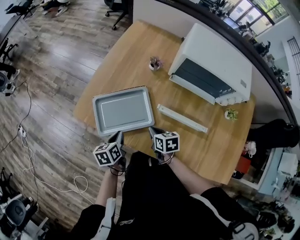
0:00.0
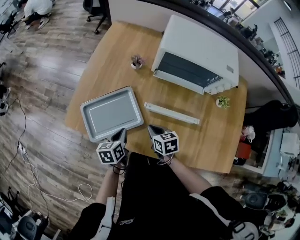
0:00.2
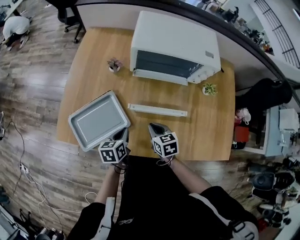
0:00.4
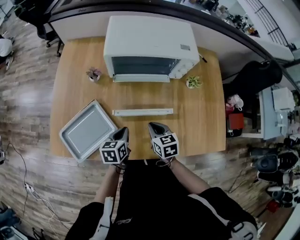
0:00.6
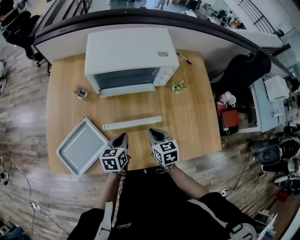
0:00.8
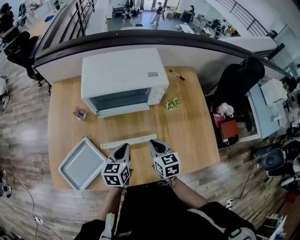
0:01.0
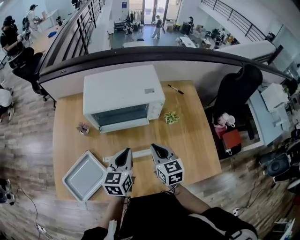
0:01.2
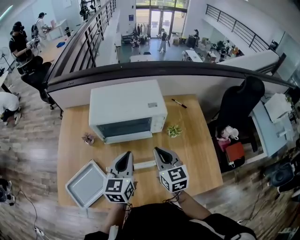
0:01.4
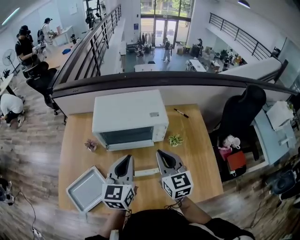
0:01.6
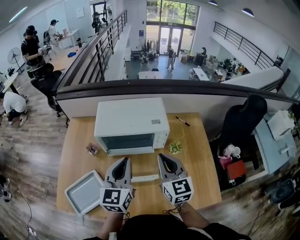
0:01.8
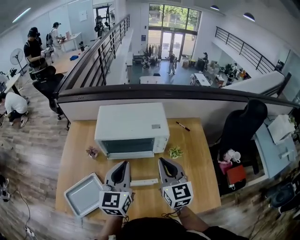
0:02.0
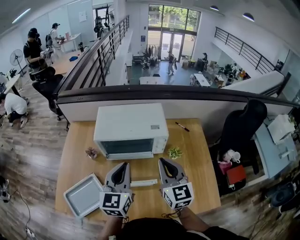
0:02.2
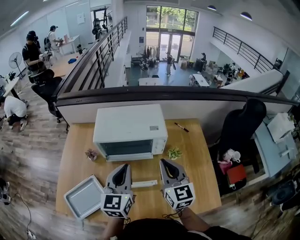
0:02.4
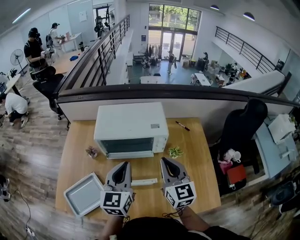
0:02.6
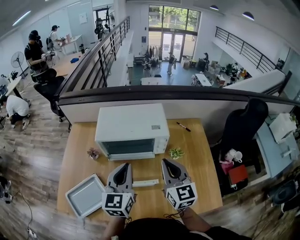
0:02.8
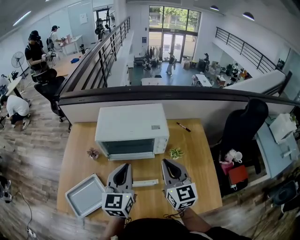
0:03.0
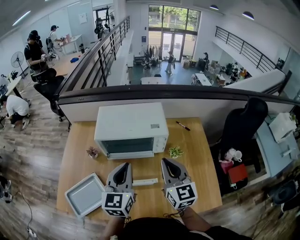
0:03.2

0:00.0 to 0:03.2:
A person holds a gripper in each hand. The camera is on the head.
0:00.0 to 0:01.6: The right gripper ends up approximately 50 cm from where it was, and tips its fingers upward by roughly 40 degrees. Meanwhile the left gripper changes place by some 50 cm, and angles its fingers upward, by about 40 degrees.
0:01.6 to 0:03.2: The grippers stay close to where they were, moving slightly.

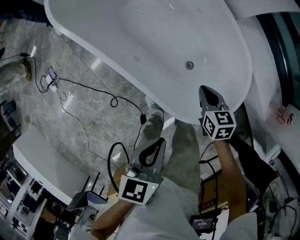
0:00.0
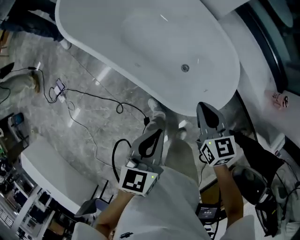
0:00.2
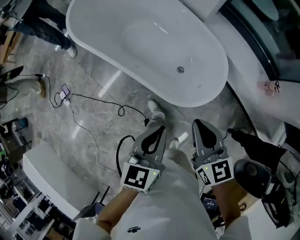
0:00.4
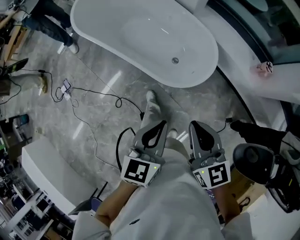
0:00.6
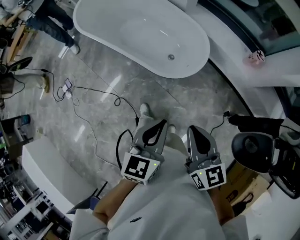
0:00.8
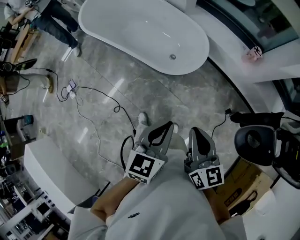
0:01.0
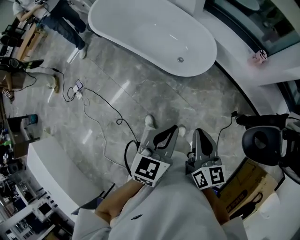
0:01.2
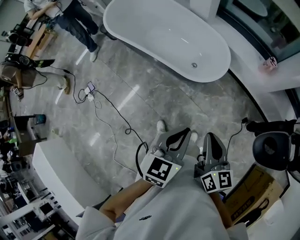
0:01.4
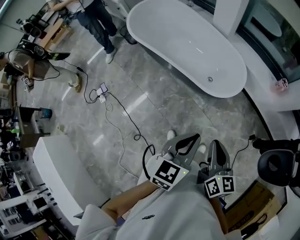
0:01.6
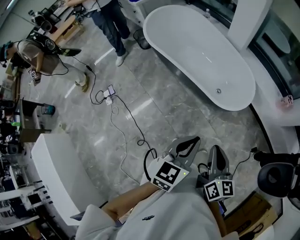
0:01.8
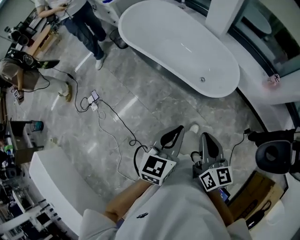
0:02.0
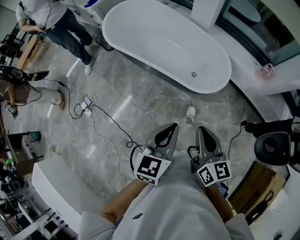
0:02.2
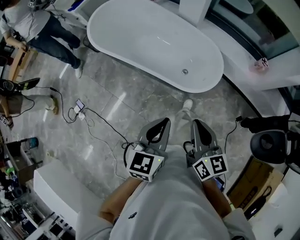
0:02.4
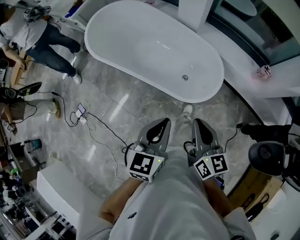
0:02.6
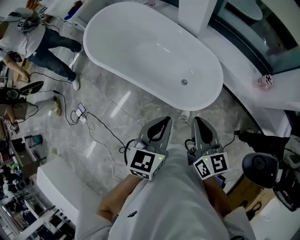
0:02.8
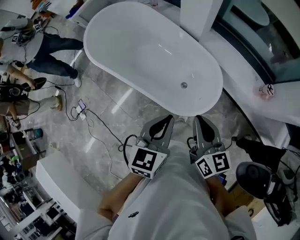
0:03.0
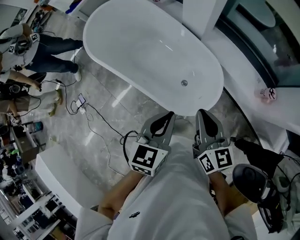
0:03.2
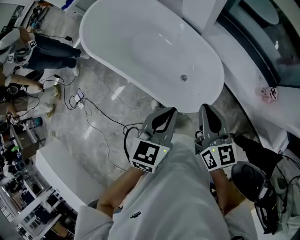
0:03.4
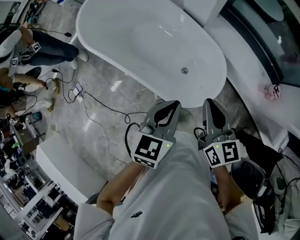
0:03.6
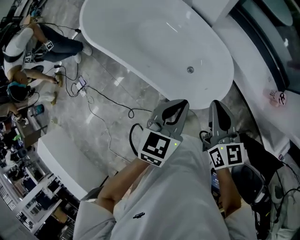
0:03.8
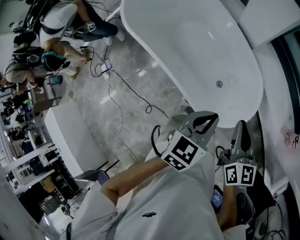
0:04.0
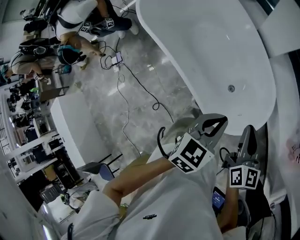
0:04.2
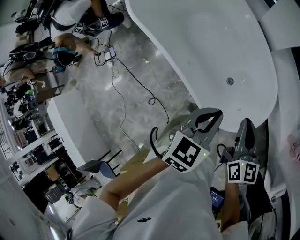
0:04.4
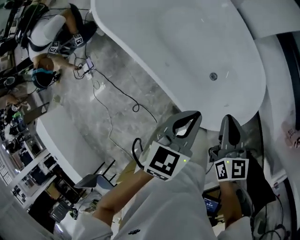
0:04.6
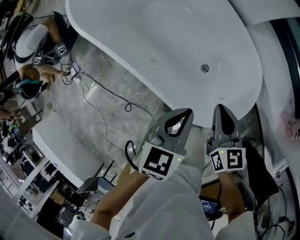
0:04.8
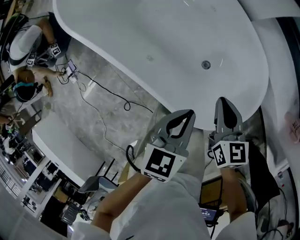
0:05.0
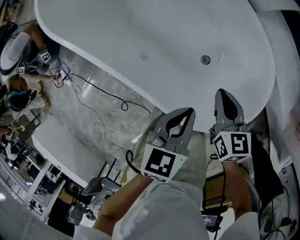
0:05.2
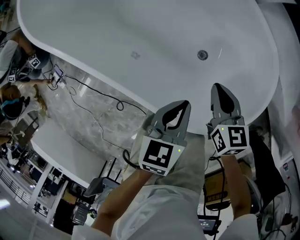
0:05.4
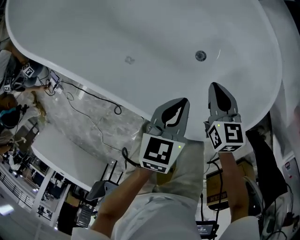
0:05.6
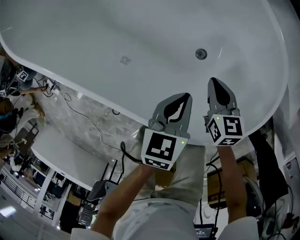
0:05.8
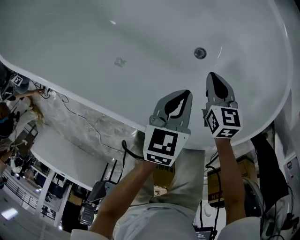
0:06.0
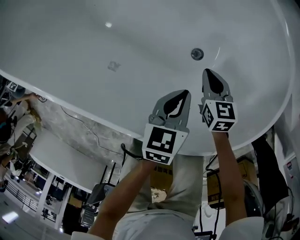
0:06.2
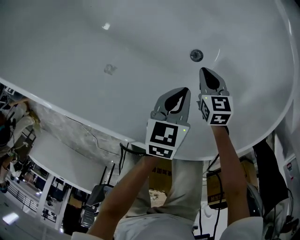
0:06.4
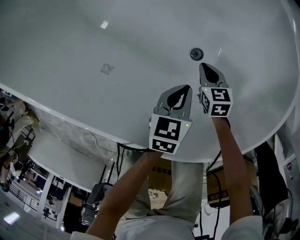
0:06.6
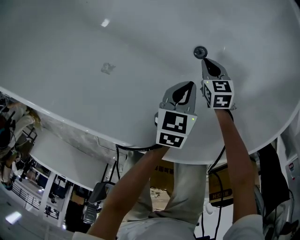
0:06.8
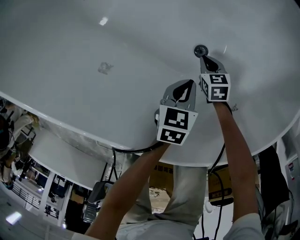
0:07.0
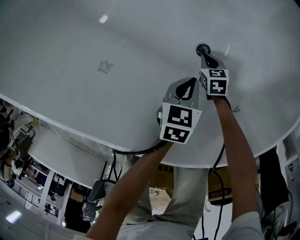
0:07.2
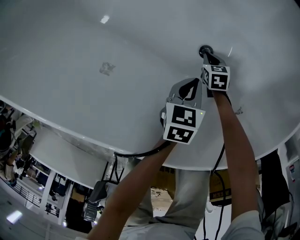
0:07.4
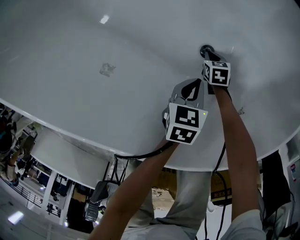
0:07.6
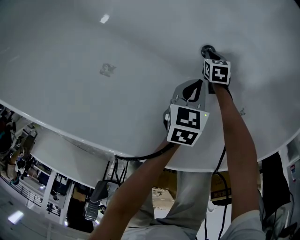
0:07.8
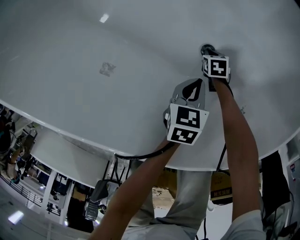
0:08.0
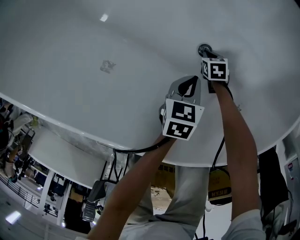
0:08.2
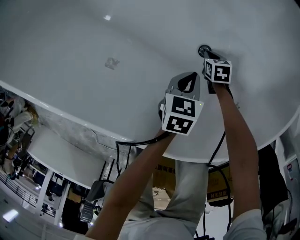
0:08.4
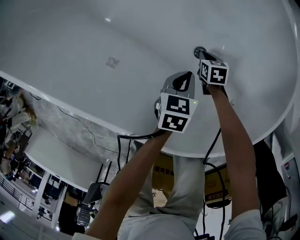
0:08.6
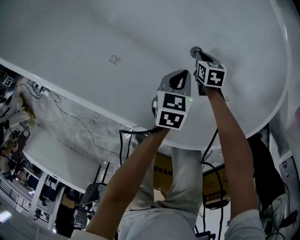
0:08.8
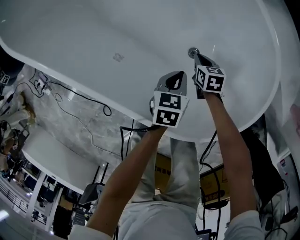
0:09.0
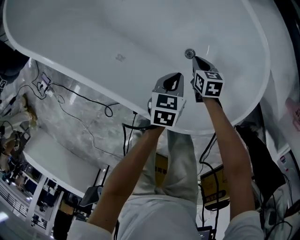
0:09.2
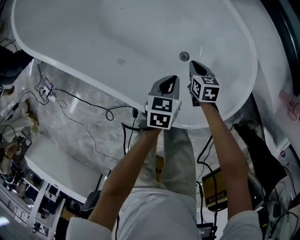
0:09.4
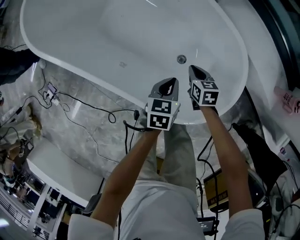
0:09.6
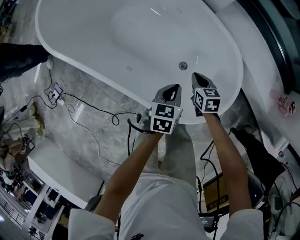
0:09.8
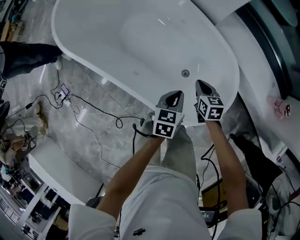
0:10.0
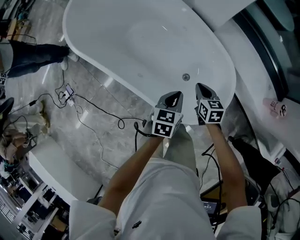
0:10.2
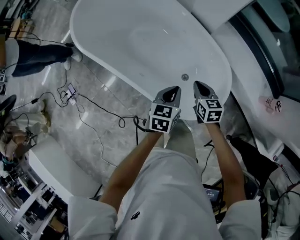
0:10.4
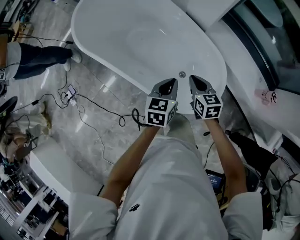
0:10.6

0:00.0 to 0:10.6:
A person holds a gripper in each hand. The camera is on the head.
0:00.0 to 0:01.6: The two grippers travel together, backward, some 50 cm. The grippers both shift upward by roughly 35 cm. The left gripper swivels about 30 degrees; the right gripper points its fingers roughly 30 degrees further upward.
0:01.6 to 0:03.0: Both grippers travel together forward, roughly 35 cm.
0:03.0 to 0:04.6: The two grippers go approximately 25 cm downward and forward.
0:04.6 to 0:06.0: The grippers both shift downward by approximately 40 cm. The right gripper changes its angle by approximately 20 degrees.
0:06.0 to 0:07.6: The right gripper moves downward, roughly 30 cm, and changes its angle by some 30 degrees, while the left gripper moves downward, about 20 cm.
0:07.6 to 0:09.0: The right gripper travels upward by about 20 cm; the left gripper moves upward, some 15 cm.
0:09.0 to 0:10.6: Both grippers travel together upward, approximately 50 cm. The left gripper turns by some 20 degrees, while the right gripper swivels about 30 degrees.

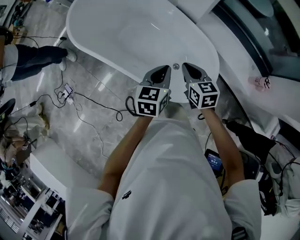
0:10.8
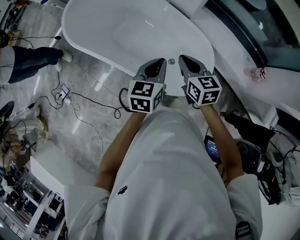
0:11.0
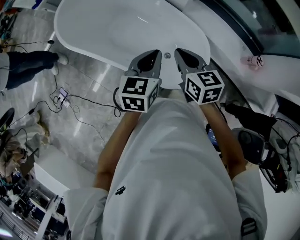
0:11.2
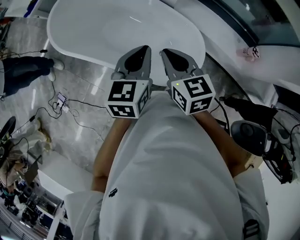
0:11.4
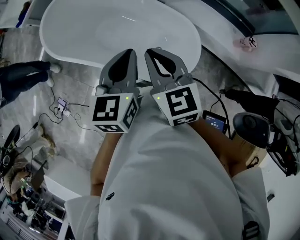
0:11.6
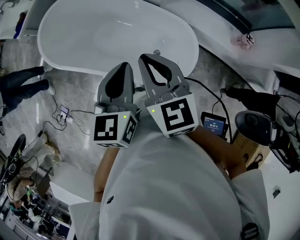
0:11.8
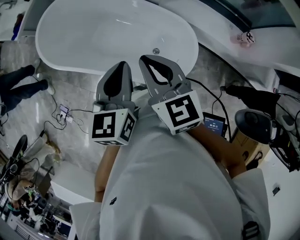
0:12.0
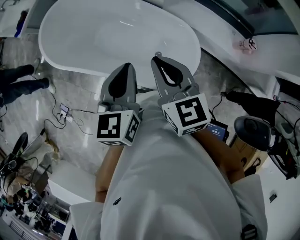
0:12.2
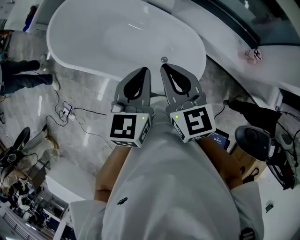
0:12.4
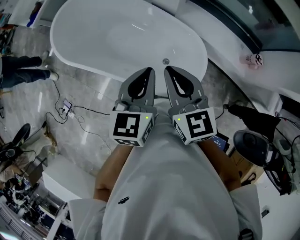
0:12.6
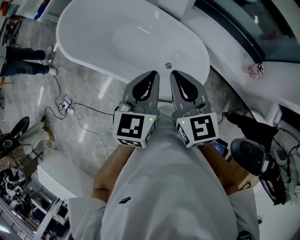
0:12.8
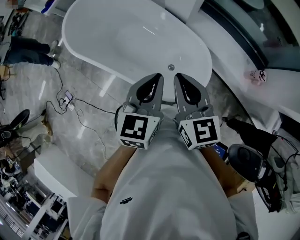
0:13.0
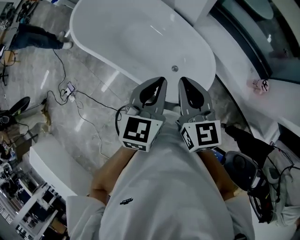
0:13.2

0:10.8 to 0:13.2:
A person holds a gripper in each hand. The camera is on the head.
0:10.8 to 0:12.0: The grippers both shift upward by roughly 15 cm.
0:12.0 to 0:13.2: Both grippers move to the right, roughly 10 cm.

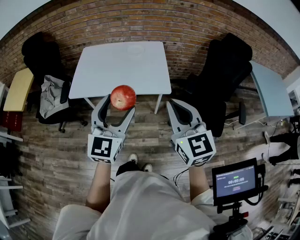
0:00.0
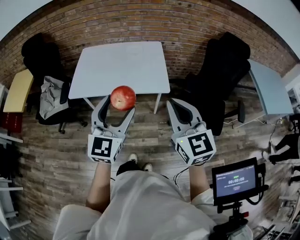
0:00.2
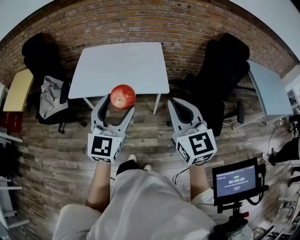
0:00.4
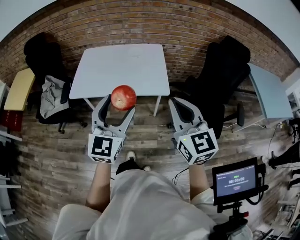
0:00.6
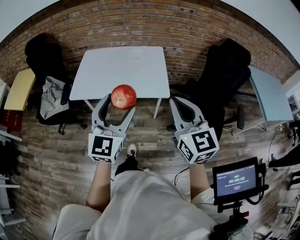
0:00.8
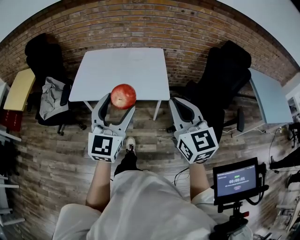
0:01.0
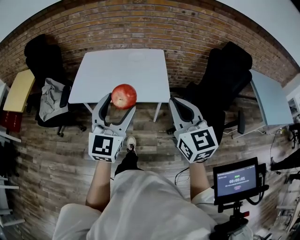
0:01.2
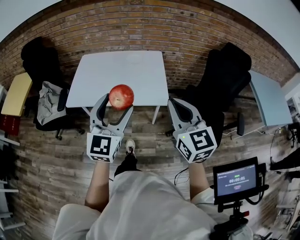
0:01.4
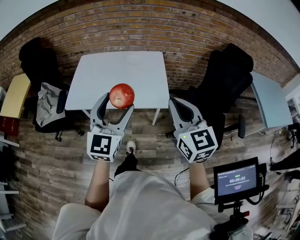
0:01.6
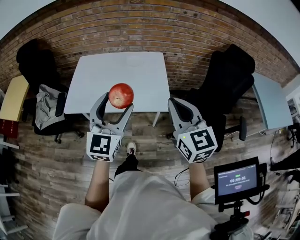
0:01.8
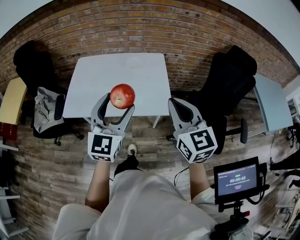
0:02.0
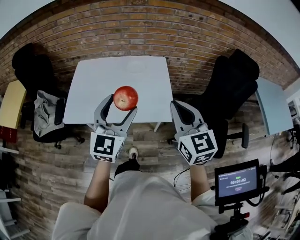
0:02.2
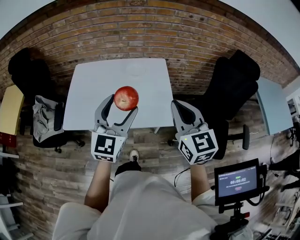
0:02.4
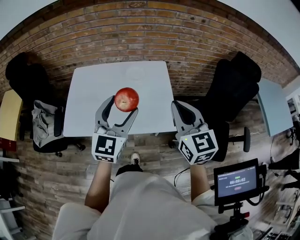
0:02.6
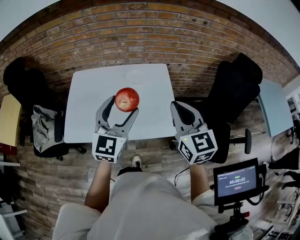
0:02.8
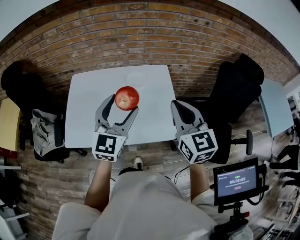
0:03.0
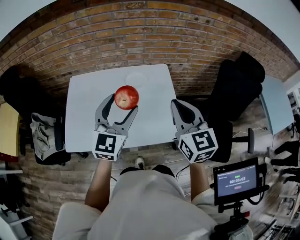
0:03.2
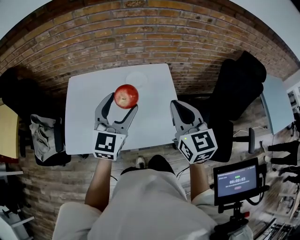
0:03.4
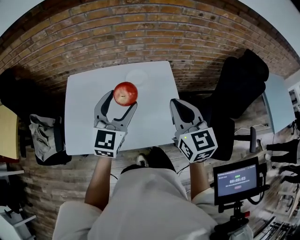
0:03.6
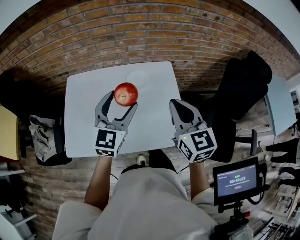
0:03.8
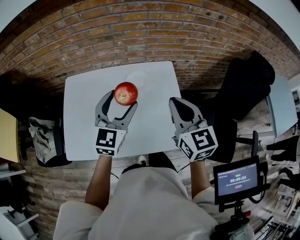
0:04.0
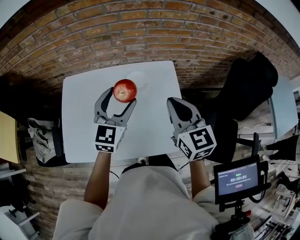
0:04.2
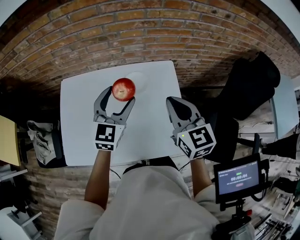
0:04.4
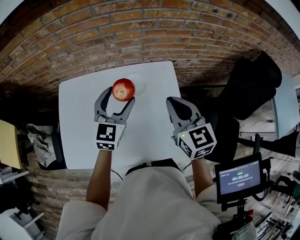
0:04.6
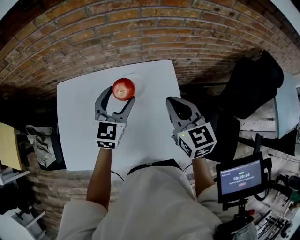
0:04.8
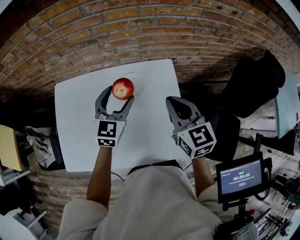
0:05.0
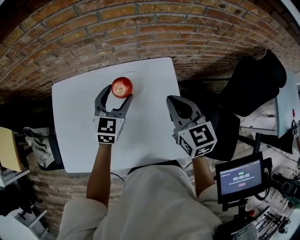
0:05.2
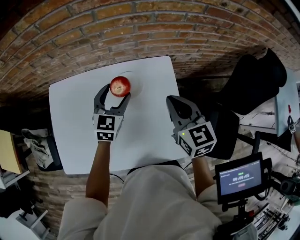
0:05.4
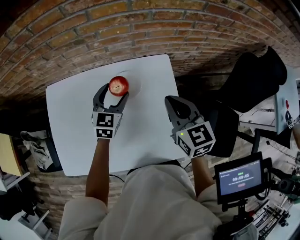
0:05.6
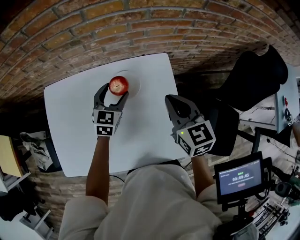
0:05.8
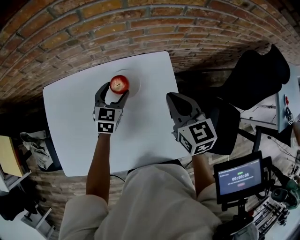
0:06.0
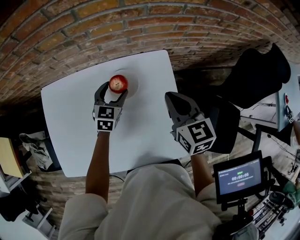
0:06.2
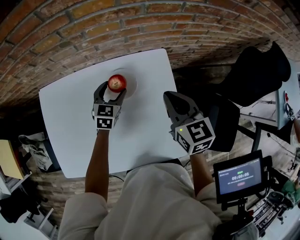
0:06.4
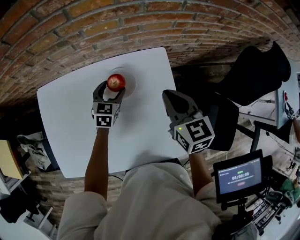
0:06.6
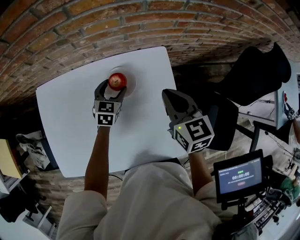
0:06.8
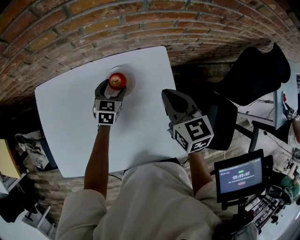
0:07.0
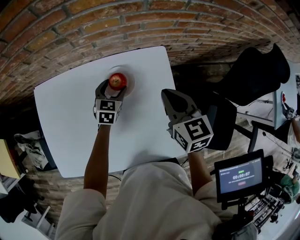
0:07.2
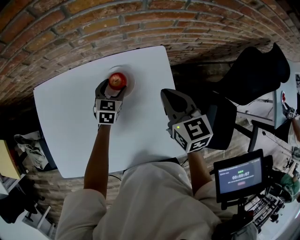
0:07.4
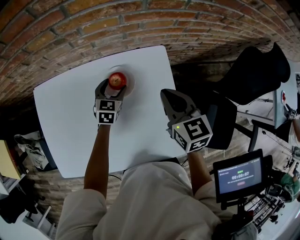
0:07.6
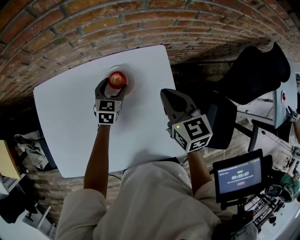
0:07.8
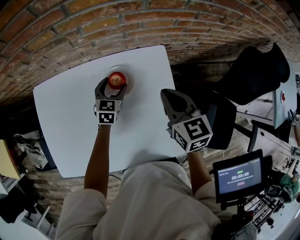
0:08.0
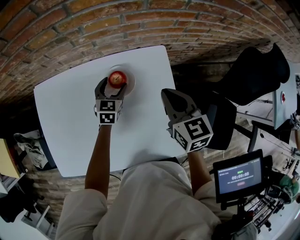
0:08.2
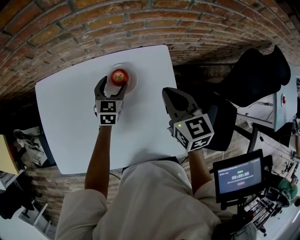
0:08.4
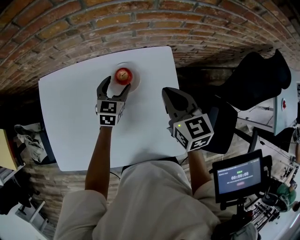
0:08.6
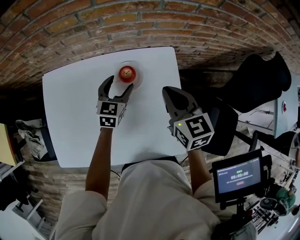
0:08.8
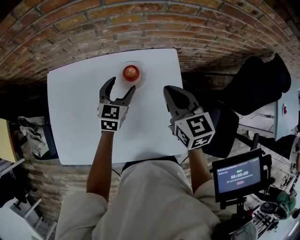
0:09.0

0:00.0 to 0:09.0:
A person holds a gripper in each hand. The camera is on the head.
0:00.0 to 0:01.6: Both grippers travel together forward, roughly 10 cm.
0:01.6 to 0:03.0: Both grippers travel together forward, about 30 cm.
0:03.0 to 0:04.4: Both grippers travel together forward and downward, roughly 20 cm.
0:04.4 to 0:06.0: The left gripper is displaced downward and forward by some 25 cm. Meanwhile the right gripper heads forward and downward, covering about 15 cm.
0:06.0 to 0:07.6: The left gripper shifts approximately 10 cm downward.
0:07.6 to 0:09.0: The right gripper changes place by some 5 cm. Meanwhile the left gripper travels upward and backward by about 15 cm.
